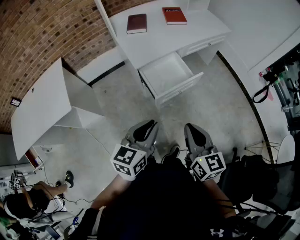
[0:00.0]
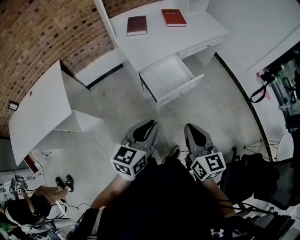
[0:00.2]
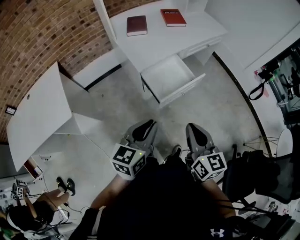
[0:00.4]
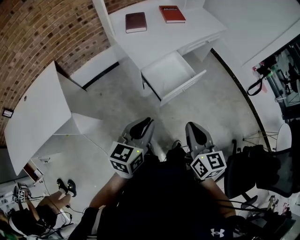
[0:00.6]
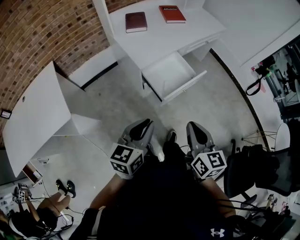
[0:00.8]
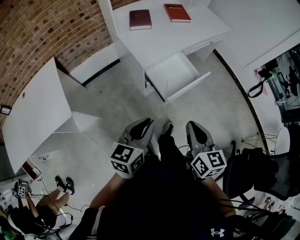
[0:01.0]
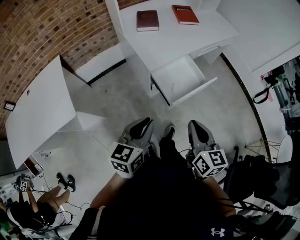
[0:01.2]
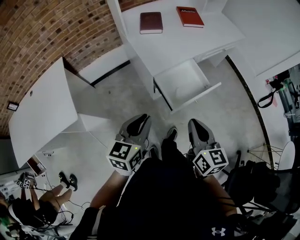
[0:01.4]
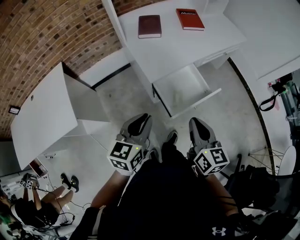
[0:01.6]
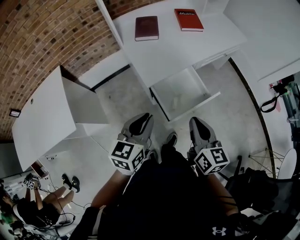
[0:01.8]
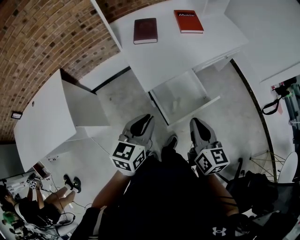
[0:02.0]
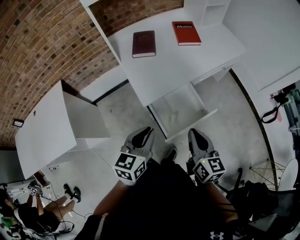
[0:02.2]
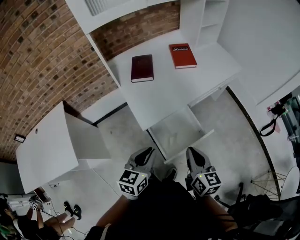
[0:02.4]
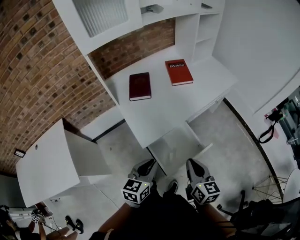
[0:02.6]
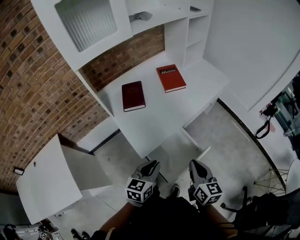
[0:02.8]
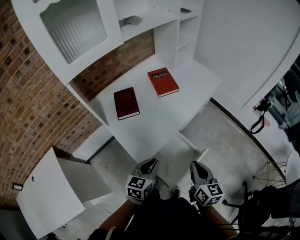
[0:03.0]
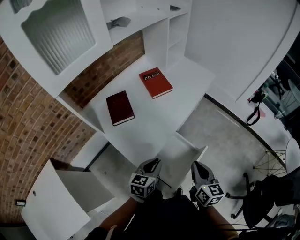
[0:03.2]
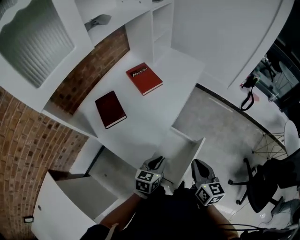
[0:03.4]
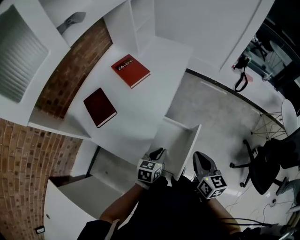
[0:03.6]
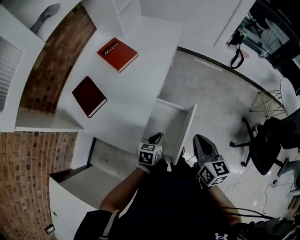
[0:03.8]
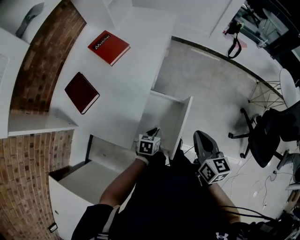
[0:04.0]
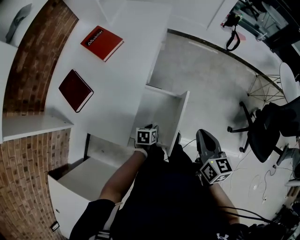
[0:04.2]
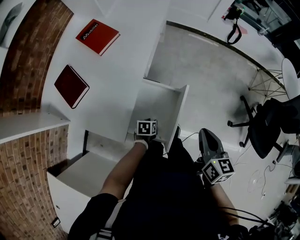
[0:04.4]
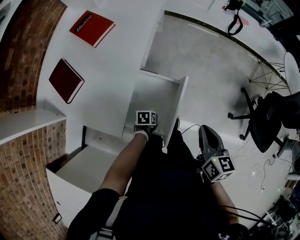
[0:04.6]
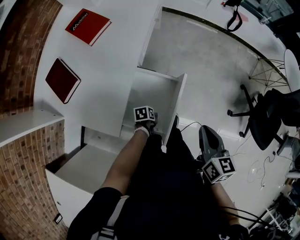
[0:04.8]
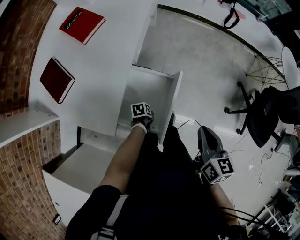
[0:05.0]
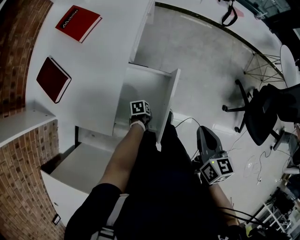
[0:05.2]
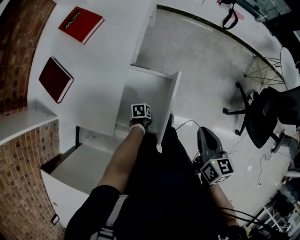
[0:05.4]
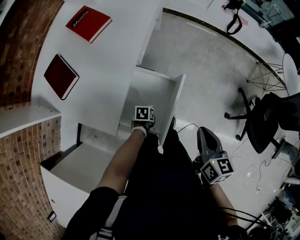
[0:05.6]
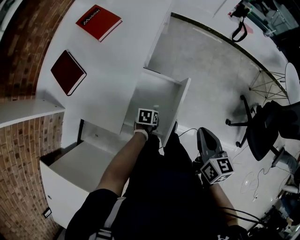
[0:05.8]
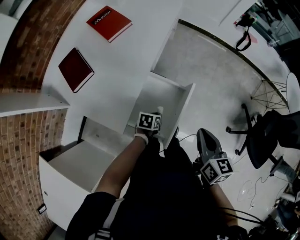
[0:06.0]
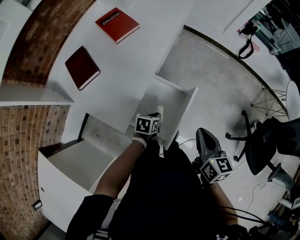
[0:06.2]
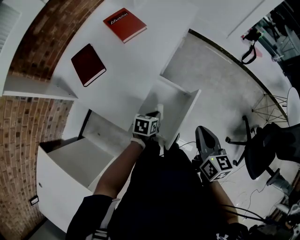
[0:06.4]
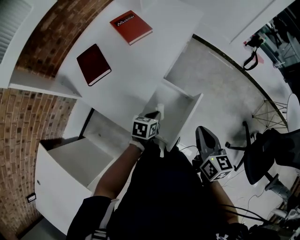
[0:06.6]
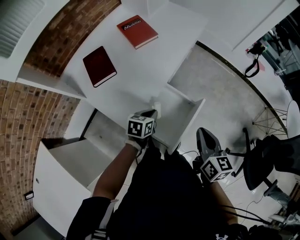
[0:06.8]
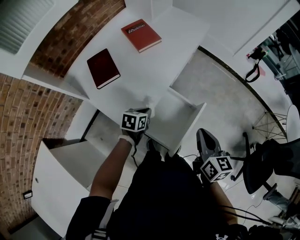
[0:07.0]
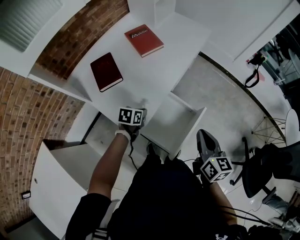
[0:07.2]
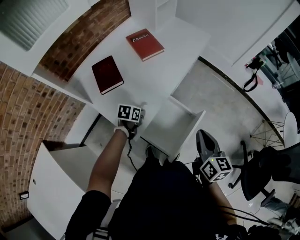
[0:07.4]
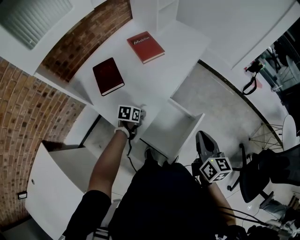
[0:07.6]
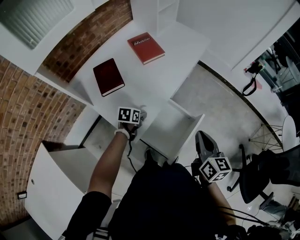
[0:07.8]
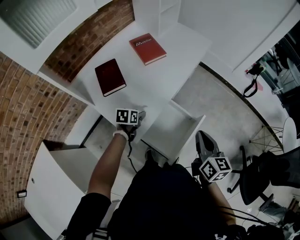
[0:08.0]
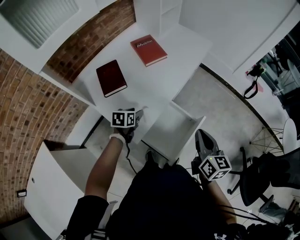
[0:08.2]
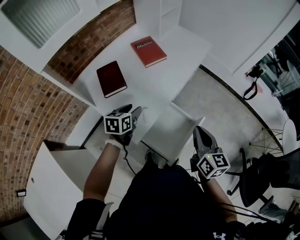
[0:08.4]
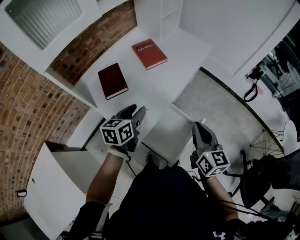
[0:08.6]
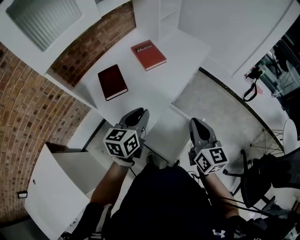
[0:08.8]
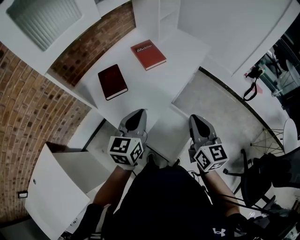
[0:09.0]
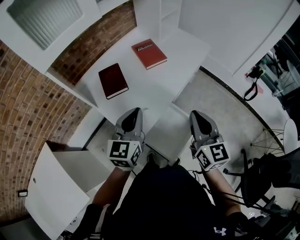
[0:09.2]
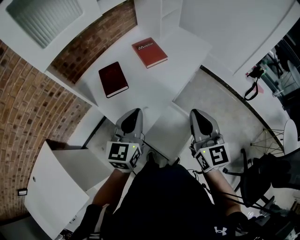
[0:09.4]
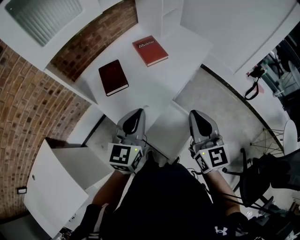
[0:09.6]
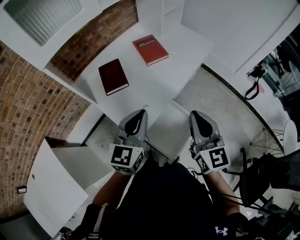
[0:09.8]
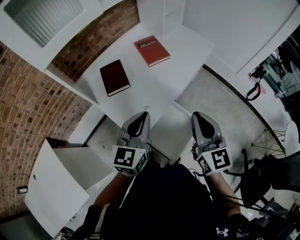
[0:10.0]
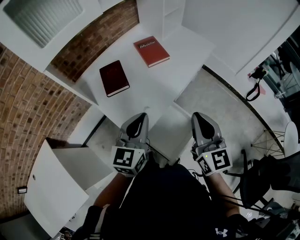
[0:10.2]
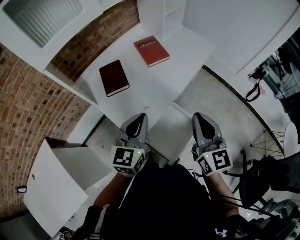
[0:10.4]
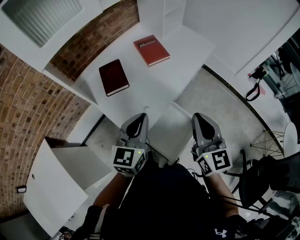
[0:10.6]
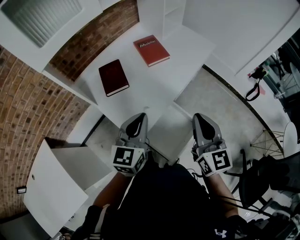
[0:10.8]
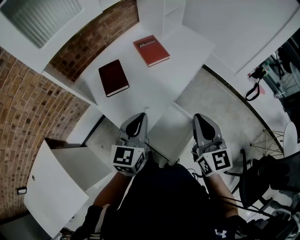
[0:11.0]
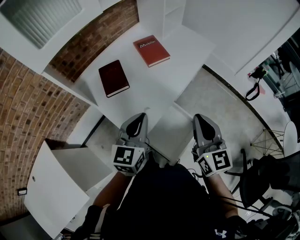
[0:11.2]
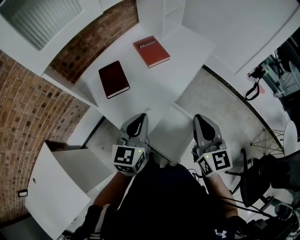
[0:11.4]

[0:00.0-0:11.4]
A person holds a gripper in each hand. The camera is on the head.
0:00.0 to 0:01.4: Both grippers travel together to the left and forward, about 15 cm.
0:01.4 to 0:02.8: The two grippers go approximately 20 cm forward.
0:02.8 to 0:04.2: The right gripper changes place by about 10 cm, and turns by approximately 40 degrees, while the left gripper moves downward, approximately 30 cm, and tilts its fingers approximately 30 degrees downward.
0:04.2 to 0:05.6: The right gripper shifts by roughly 5 cm. The left gripper shifts roughly 10 cm downward.
0:05.6 to 0:07.2: The left gripper is displaced upward by about 20 cm, and turns by some 30 degrees. Meanwhile the right gripper moves about 15 cm, and turns by about 20 degrees.
0:07.2 to 0:08.6: The left gripper heads upward, covering some 20 cm, turns by approximately 30 degrees, and opens up. Meanwhile the right gripper shifts approximately 5 cm upward.
0:08.6 to 0:10.0: The right gripper is displaced upward by roughly 5 cm. Meanwhile the left gripper is displaced upward and backward by about 10 cm, changes its angle by roughly 30 degrees, and closes.
0:10.0 to 0:11.4: The grippers make only small movements.

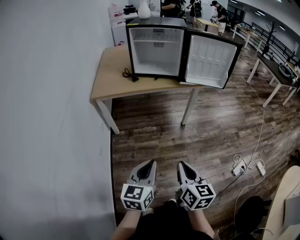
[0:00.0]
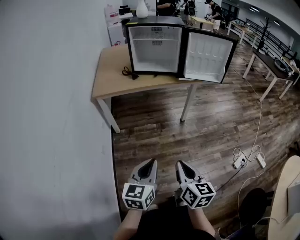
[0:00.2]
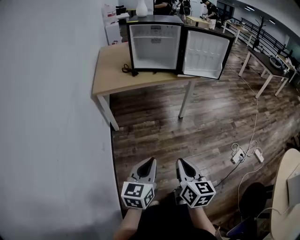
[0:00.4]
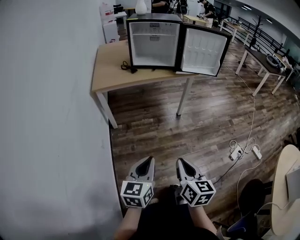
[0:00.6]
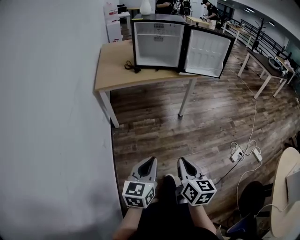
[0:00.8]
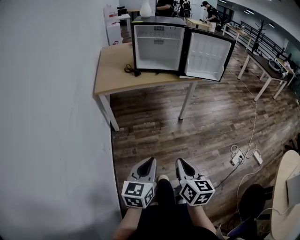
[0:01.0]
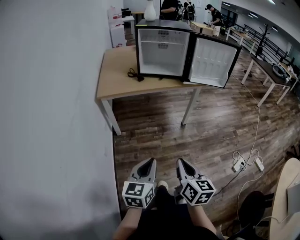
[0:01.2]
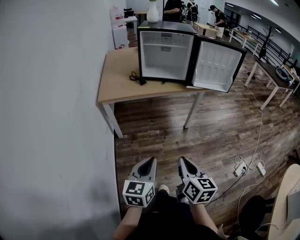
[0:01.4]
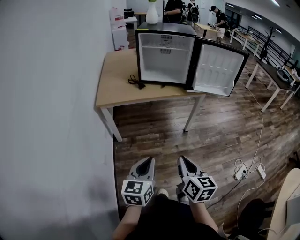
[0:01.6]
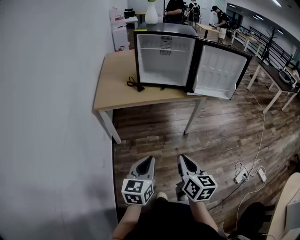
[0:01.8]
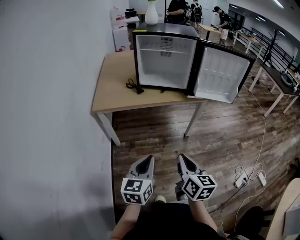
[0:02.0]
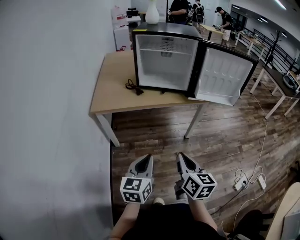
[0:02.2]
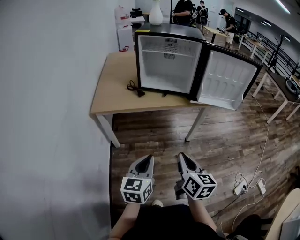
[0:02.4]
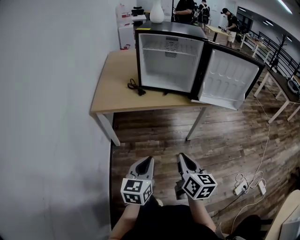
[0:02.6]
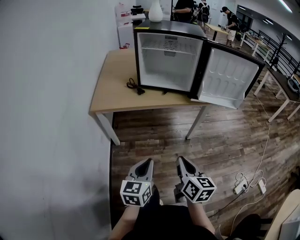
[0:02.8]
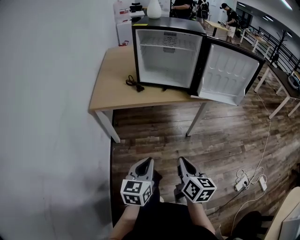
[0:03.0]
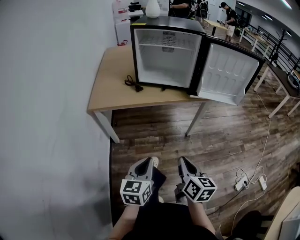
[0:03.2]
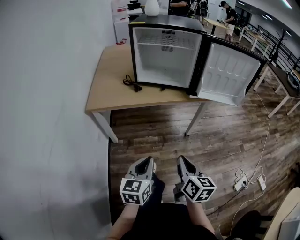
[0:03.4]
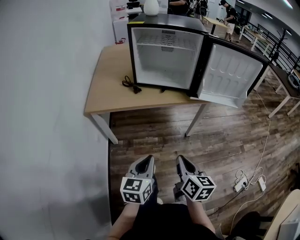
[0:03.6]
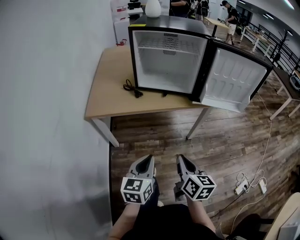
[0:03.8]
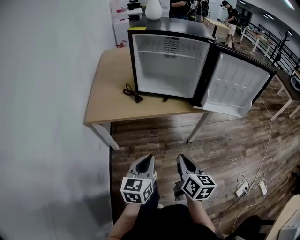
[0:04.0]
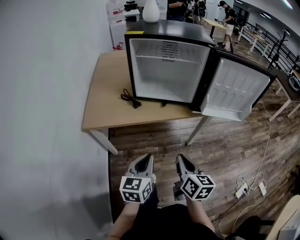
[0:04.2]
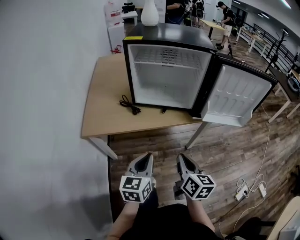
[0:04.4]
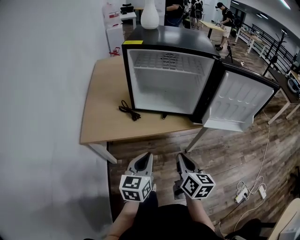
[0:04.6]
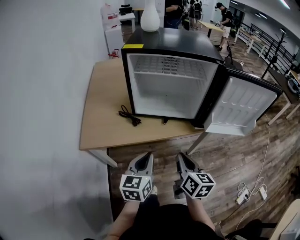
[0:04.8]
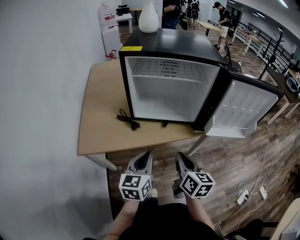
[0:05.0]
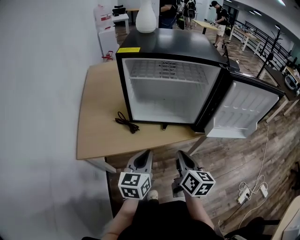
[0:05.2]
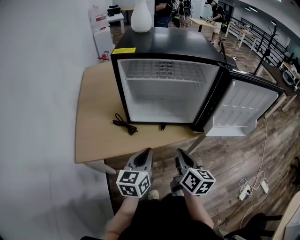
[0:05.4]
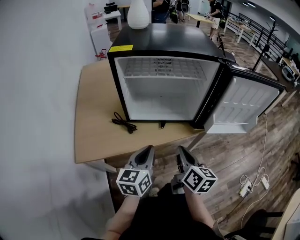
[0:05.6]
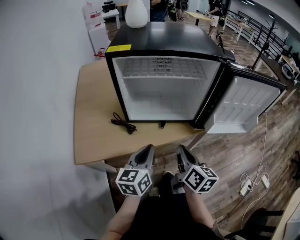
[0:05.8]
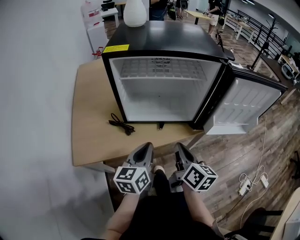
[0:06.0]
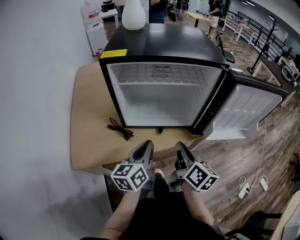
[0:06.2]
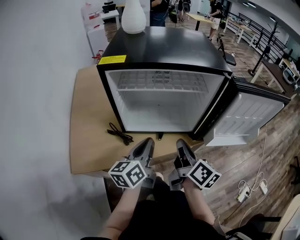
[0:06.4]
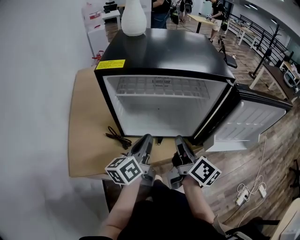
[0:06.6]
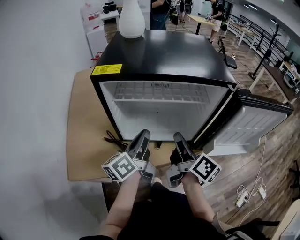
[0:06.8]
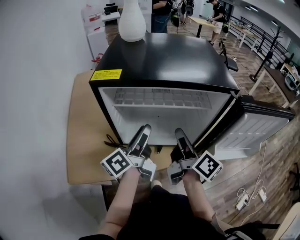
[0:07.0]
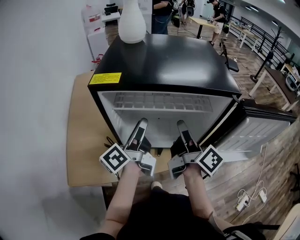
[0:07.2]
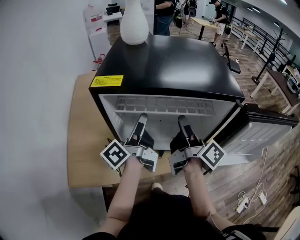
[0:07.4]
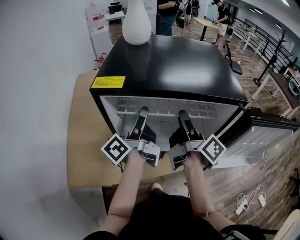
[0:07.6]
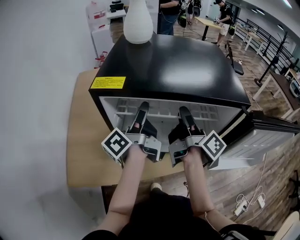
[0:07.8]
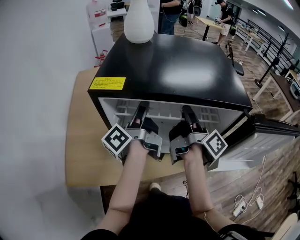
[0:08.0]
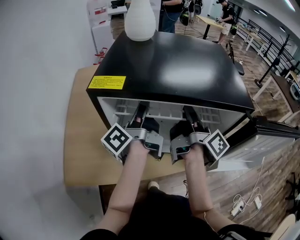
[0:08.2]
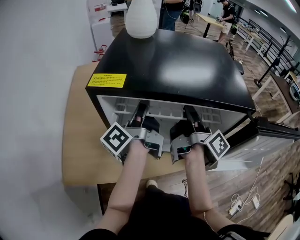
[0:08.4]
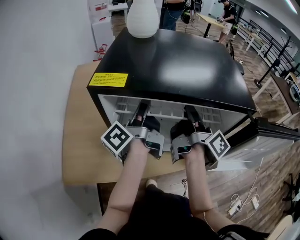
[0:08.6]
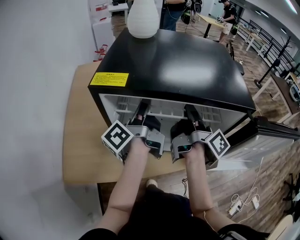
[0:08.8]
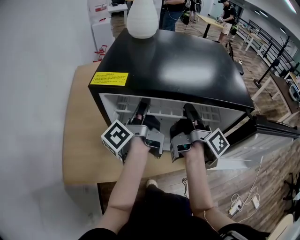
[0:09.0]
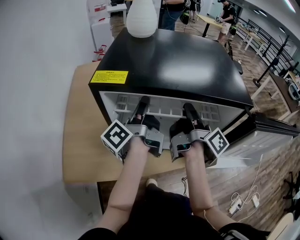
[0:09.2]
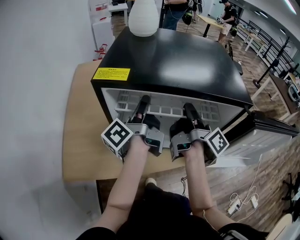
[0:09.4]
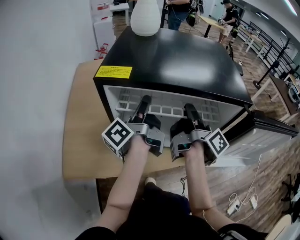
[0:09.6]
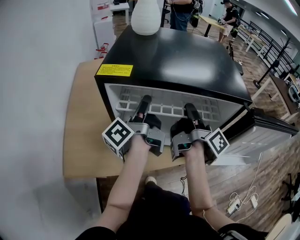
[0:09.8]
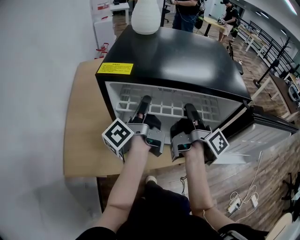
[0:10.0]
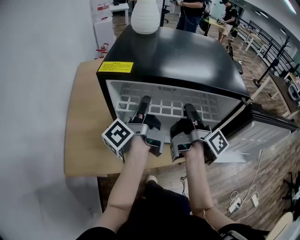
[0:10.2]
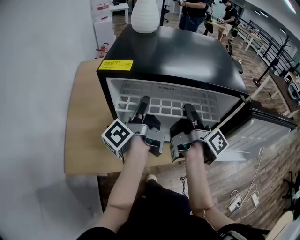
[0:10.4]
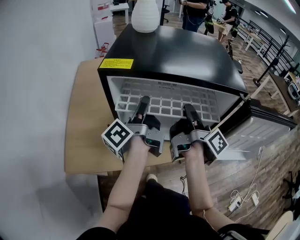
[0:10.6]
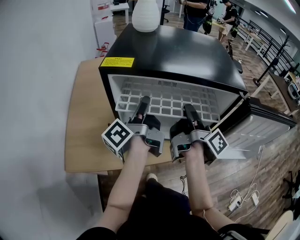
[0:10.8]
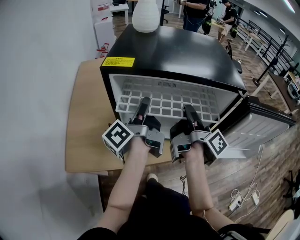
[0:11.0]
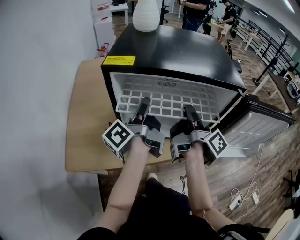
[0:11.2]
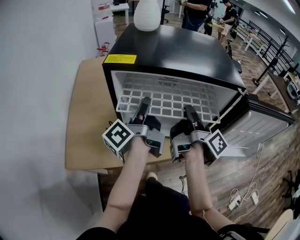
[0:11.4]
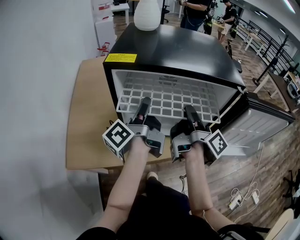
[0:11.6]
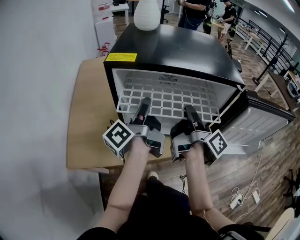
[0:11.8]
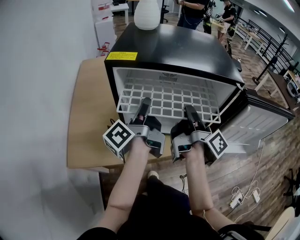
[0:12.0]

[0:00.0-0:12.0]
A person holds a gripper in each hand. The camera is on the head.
0:00.0 to 0:01.6: Both grippers move to the left and forward, some 10 cm.
0:01.6 to 0:03.0: The right gripper shifts approximately 15 cm forward and downward; the left gripper goes some 10 cm forward.
0:03.0 to 0:04.4: The grippers both shift forward by roughly 20 cm.
0:04.4 to 0:06.0: The two grippers go approximately 20 cm forward.
0:06.0 to 0:07.6: The grippers both shift forward and upward by roughly 25 cm. The right gripper changes its angle by approximately 40 degrees, and opens up; the left gripper rotates around the line of its fingers by roughly 50 degrees, counterclockwise from behind, and opens up.
0:07.6 to 0:09.0: The left gripper closes. Meanwhile the right gripper closes.
0:09.0 to 0:10.4: Both grippers stay put.
0:10.4 to 0:12.0: Neither gripper changes place.
